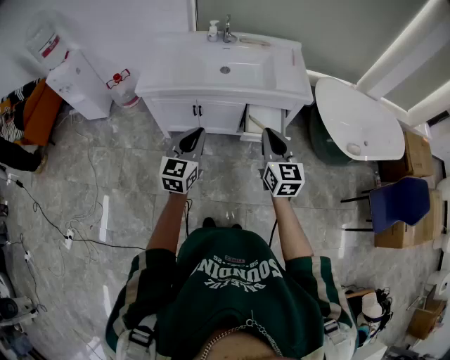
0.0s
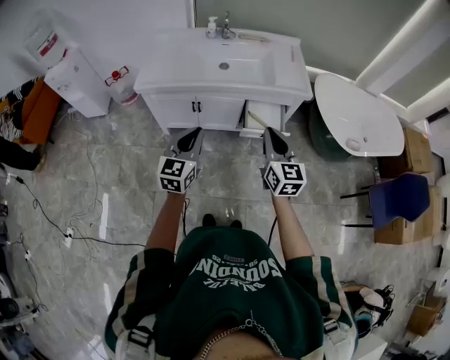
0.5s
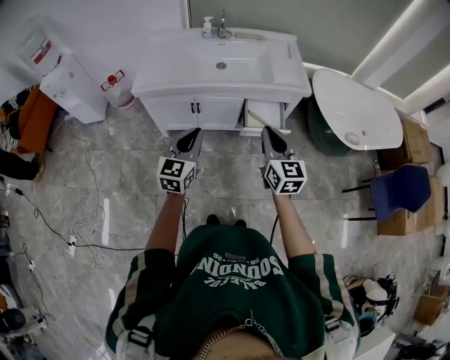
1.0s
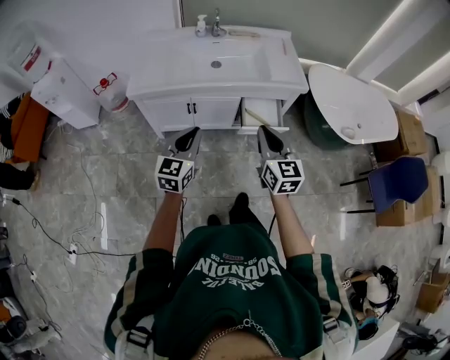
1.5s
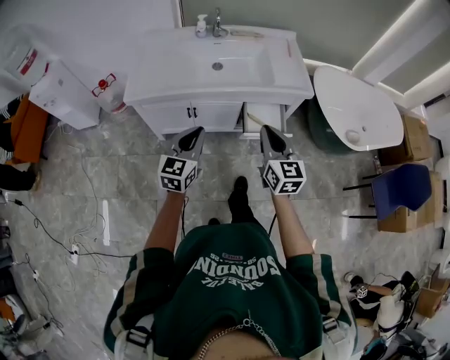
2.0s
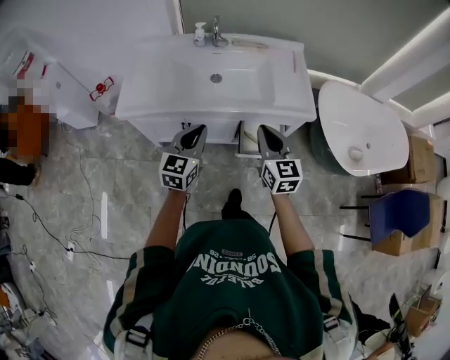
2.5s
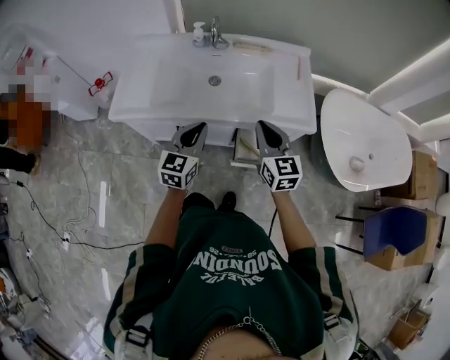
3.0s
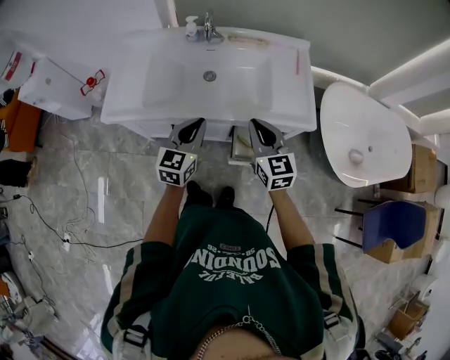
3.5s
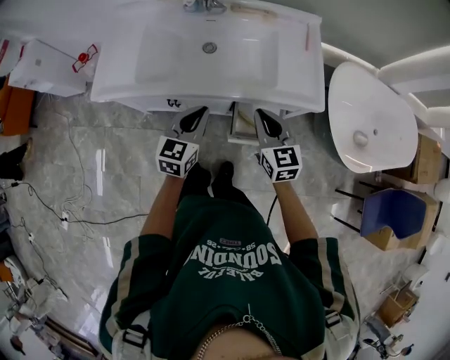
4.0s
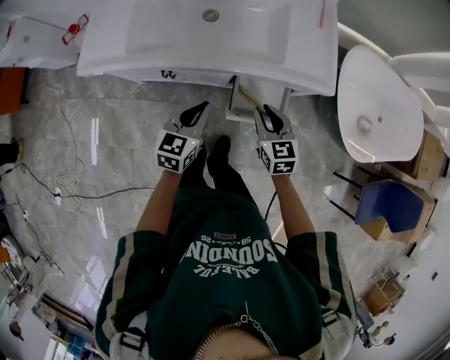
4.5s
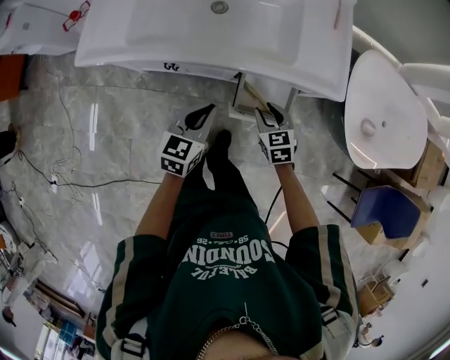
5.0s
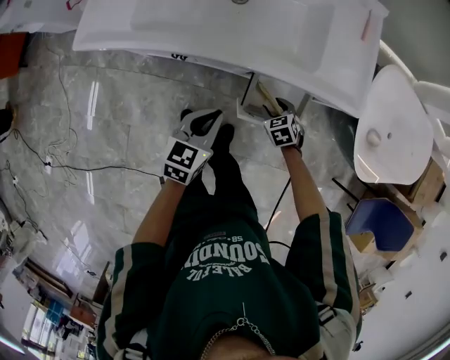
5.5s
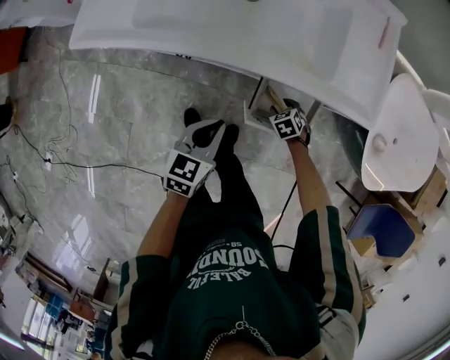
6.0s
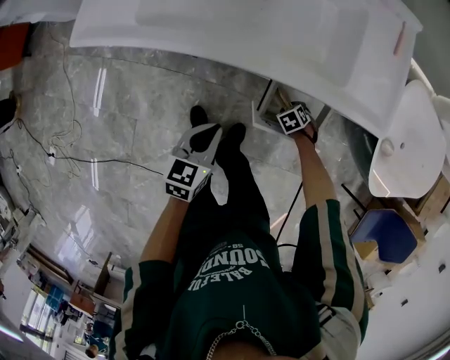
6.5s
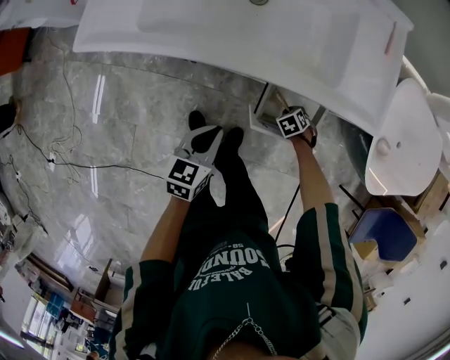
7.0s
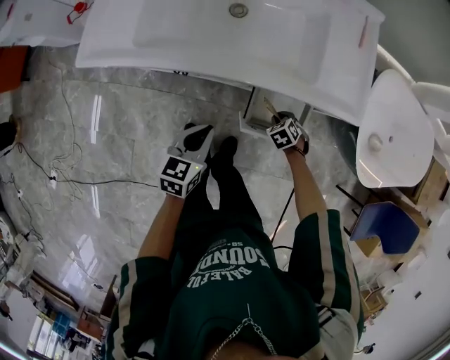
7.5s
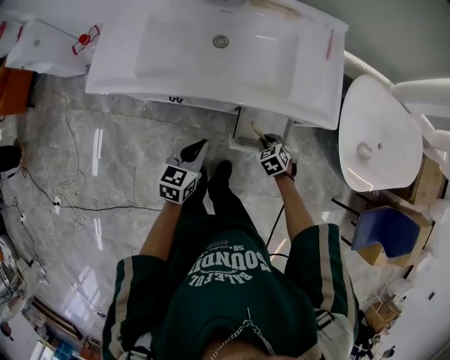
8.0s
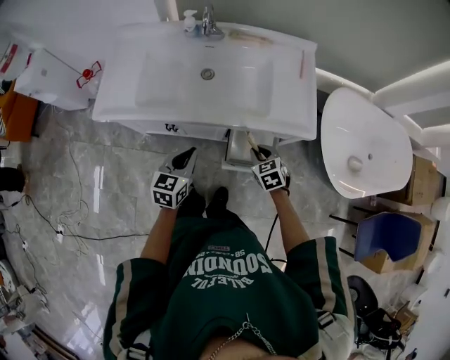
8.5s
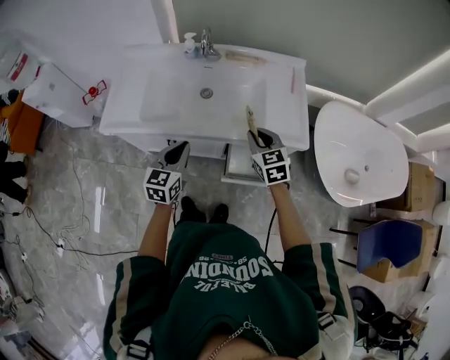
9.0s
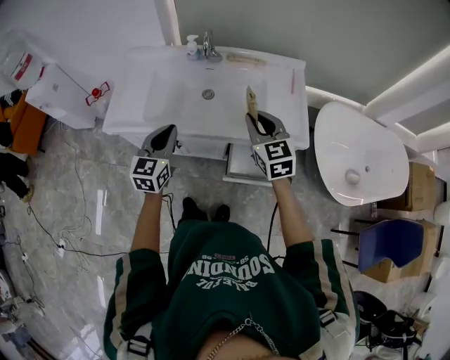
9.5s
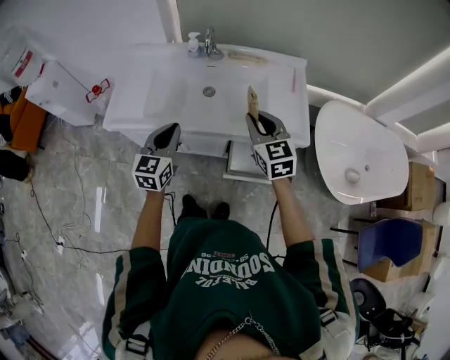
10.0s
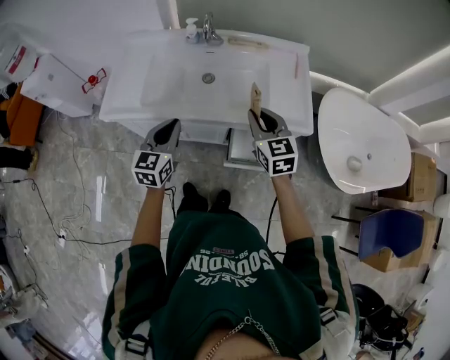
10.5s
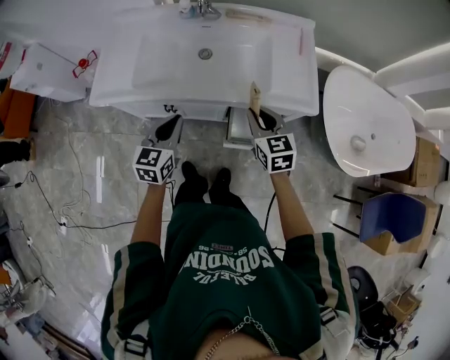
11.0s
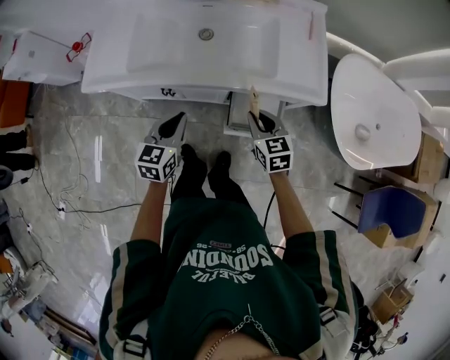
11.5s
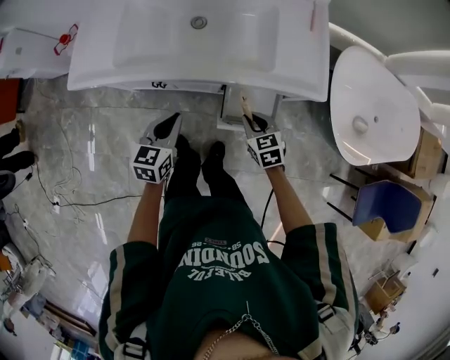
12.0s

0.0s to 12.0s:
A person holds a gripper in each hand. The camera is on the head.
0.0s to 2.0s: Both grippers travel together forward, roughly 5 cm.
2.0s to 4.0s: The left gripper goes some 25 cm forward and to the right. Meanwhile the right gripper heads forward and downward, covering some 25 cm.
4.0s to 6.0s: The left gripper goes some 15 cm downward, while the right gripper travels downward by approximately 40 cm, tips its fingers downward by approximately 60 degrees, and opens its fingers.
6.0s to 8.0s: The left gripper is displaced upward by roughly 5 cm; the right gripper moves upward, some 15 cm, and closes its fingers.
8.0s to 10.0s: The right gripper goes roughly 40 cm upward, and tips its fingers upward by about 50 degrees. The left gripper is displaced upward by roughly 20 cm, and changes its angle by about 30 degrees.
10.0s to 12.0s: The right gripper is displaced downward by approximately 30 cm, and changes its angle by roughly 30 degrees, while the left gripper moves downward, approximately 20 cm, and changes its angle by approximately 20 degrees.

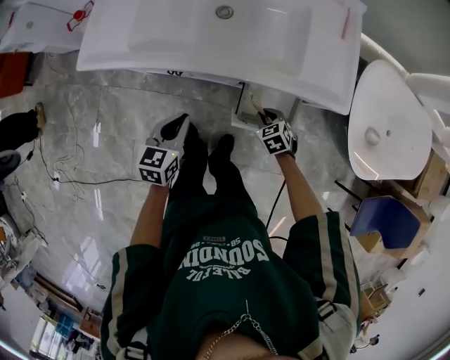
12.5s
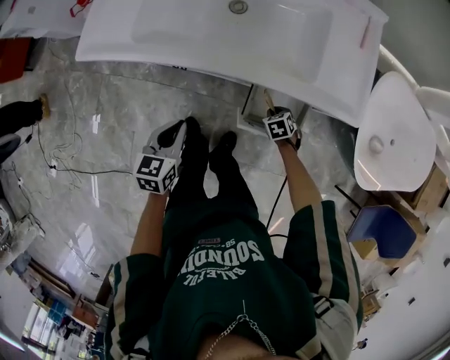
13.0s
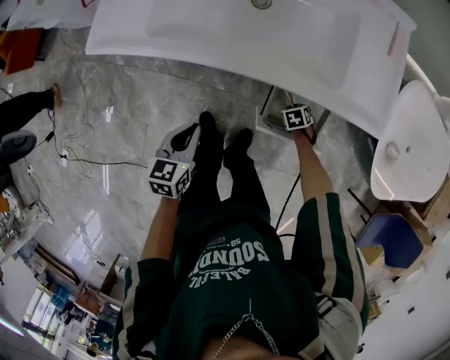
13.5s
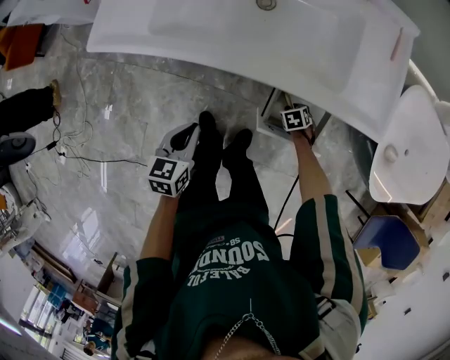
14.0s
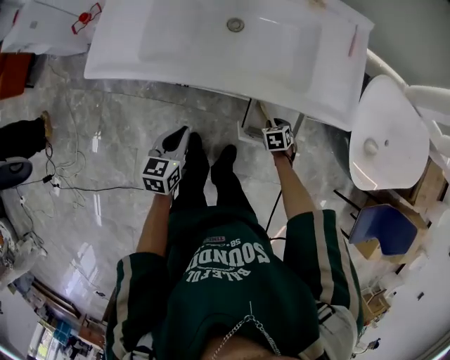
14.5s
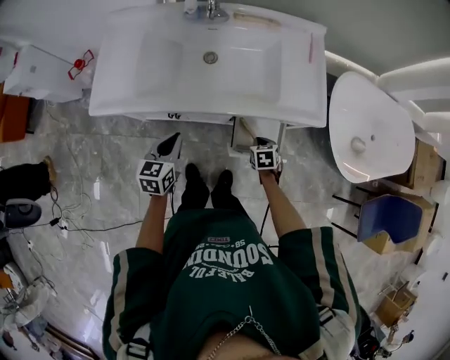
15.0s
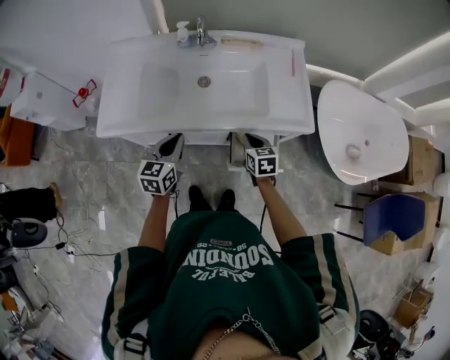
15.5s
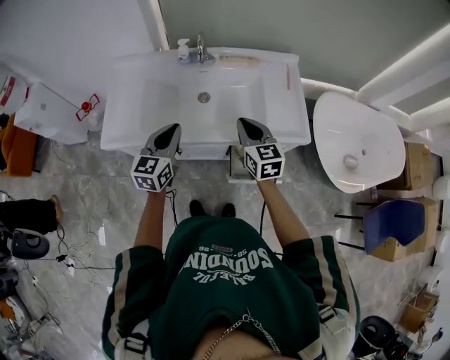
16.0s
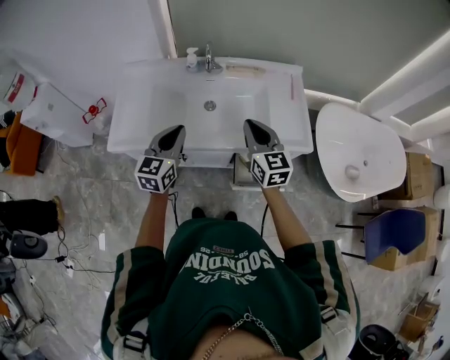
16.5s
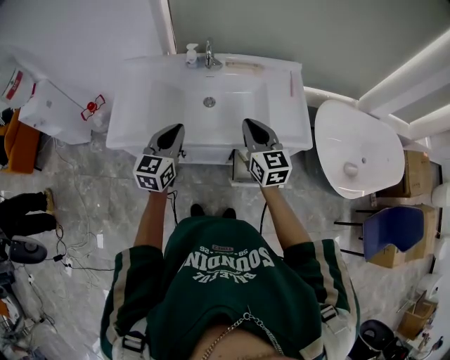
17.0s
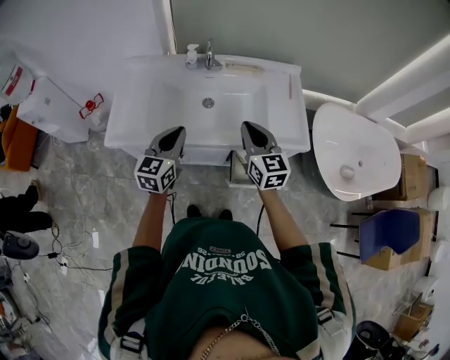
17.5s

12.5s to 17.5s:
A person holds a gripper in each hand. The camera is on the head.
12.5s to 15.0s: The right gripper travels downward and back again, some 15 cm each way, and swivels about 30 degrees. The left gripper shifts by about 10 cm.
15.0s to 17.5s: The left gripper moves upward, approximately 20 cm, and changes its angle by some 20 degrees. Meanwhile the right gripper heads upward, covering some 35 cm, and tilts its fingers about 50 degrees upward.

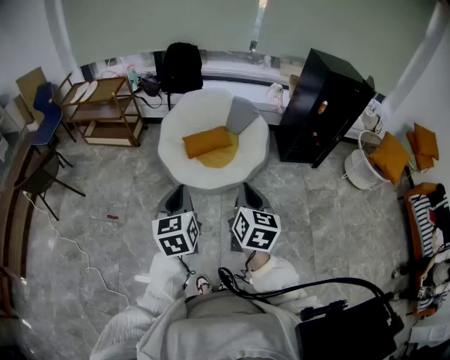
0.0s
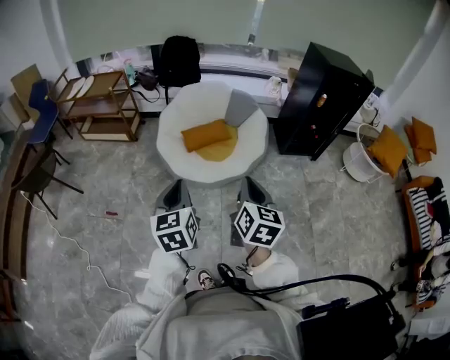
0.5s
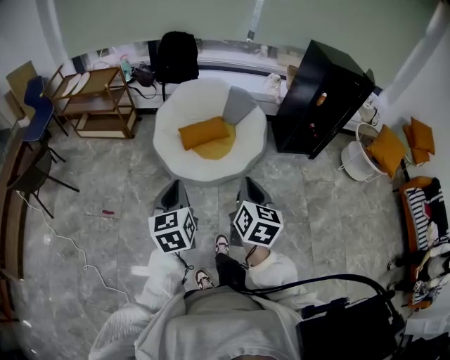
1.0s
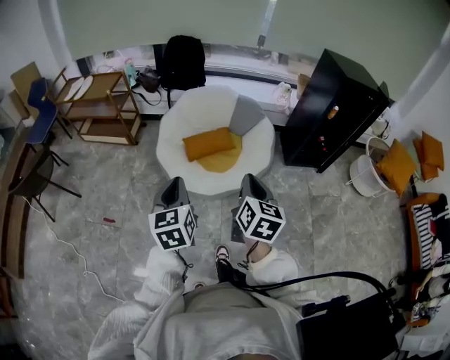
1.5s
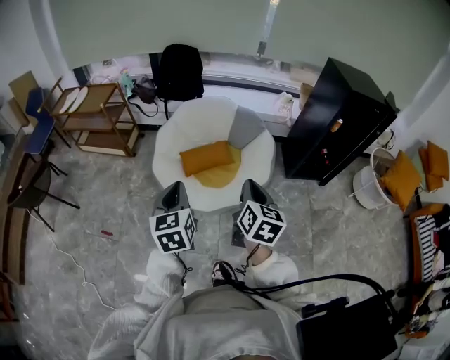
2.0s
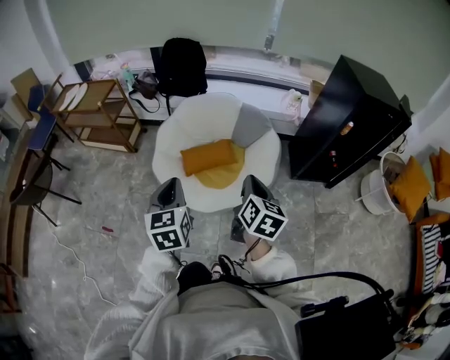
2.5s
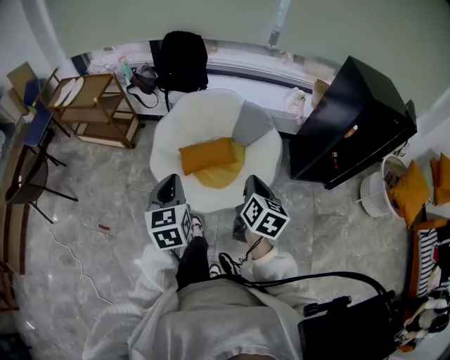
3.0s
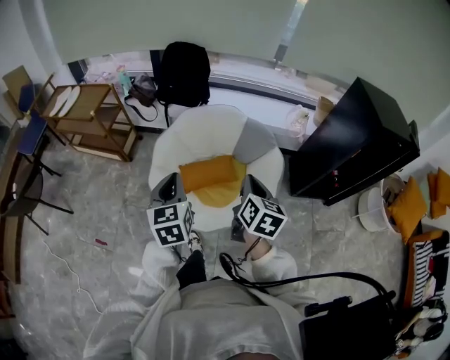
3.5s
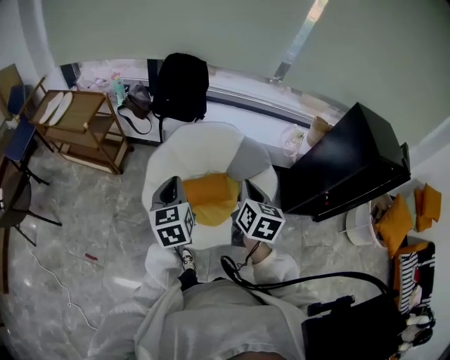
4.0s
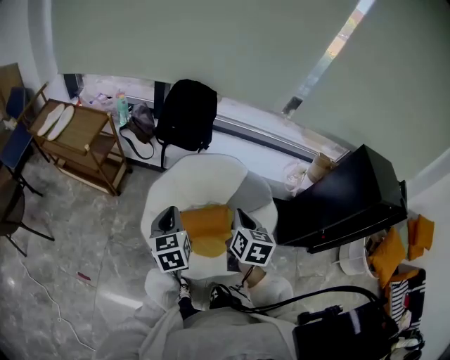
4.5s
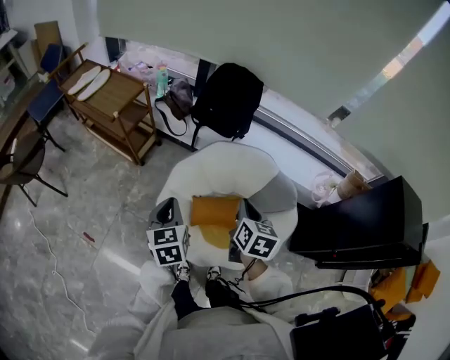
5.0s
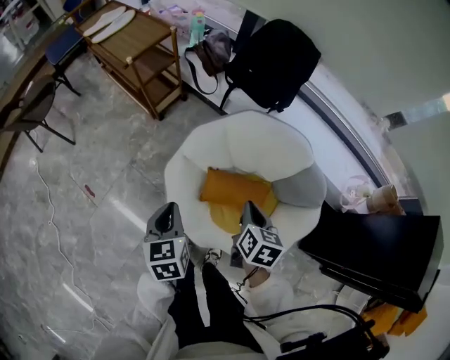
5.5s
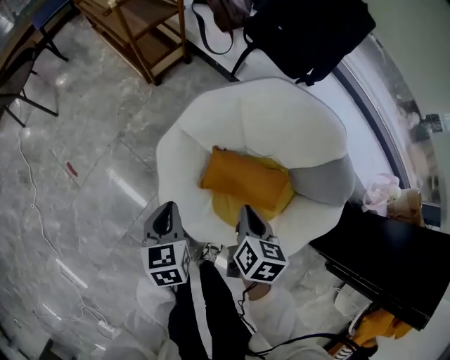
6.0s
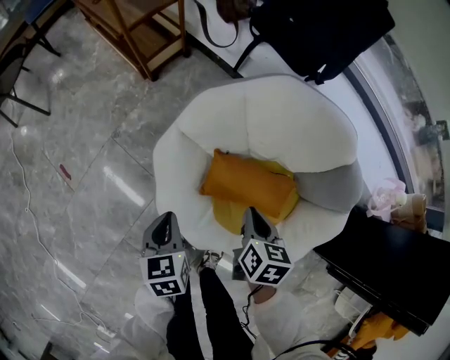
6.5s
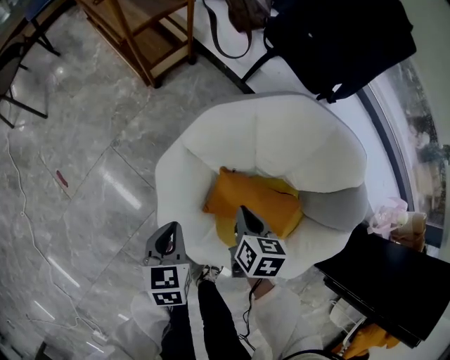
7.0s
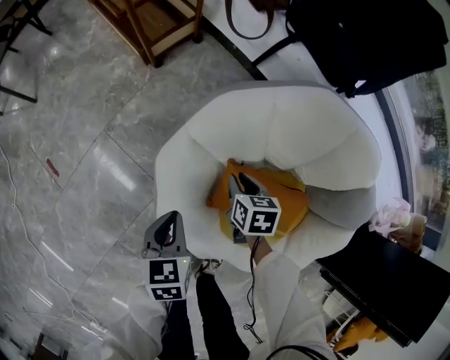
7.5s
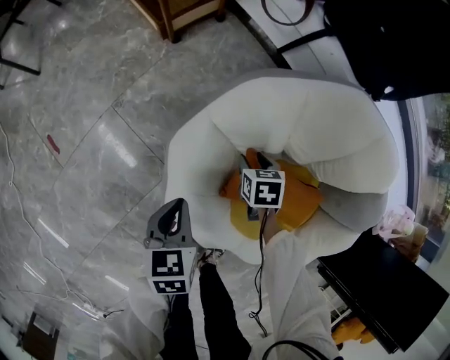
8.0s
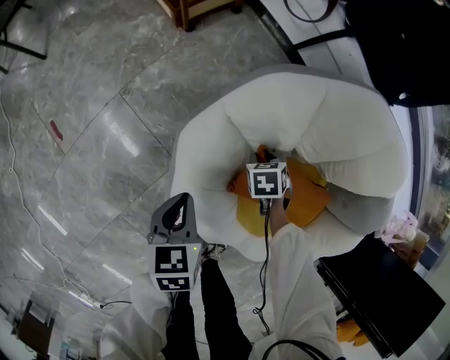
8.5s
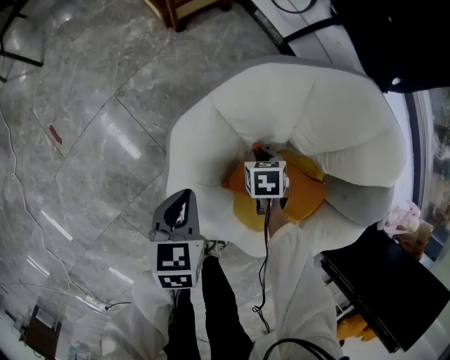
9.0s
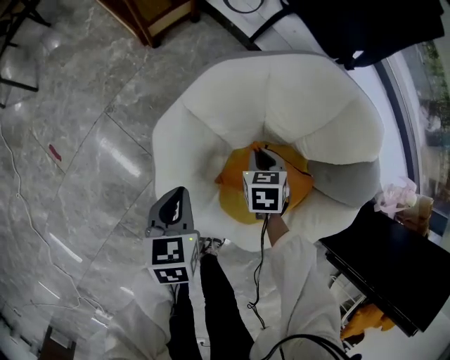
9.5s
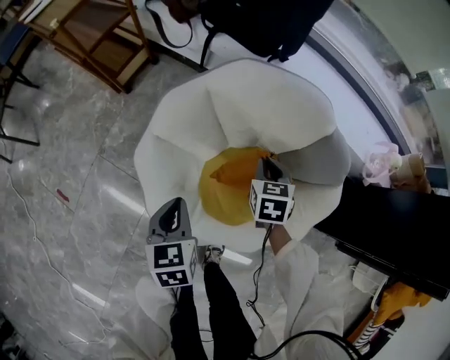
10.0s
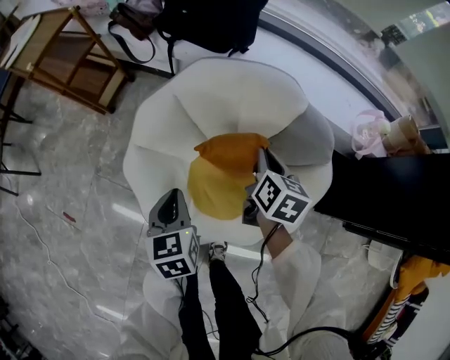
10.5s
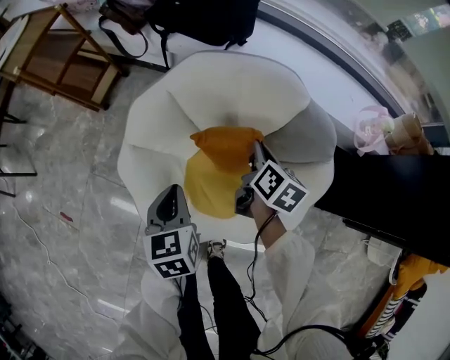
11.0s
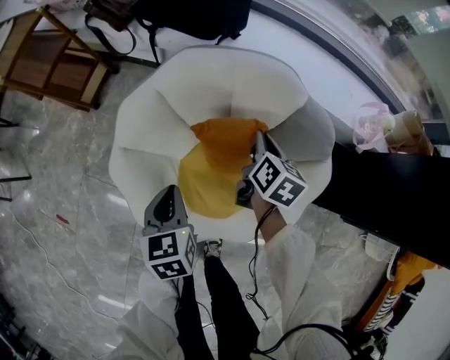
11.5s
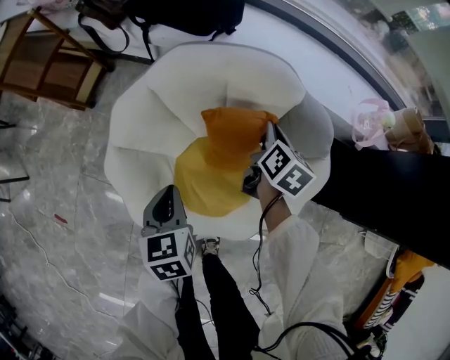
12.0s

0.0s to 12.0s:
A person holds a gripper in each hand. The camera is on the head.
0.0s to 2.0s: The two grippers go some 20 cm forward.
2.0s to 4.0s: The grippers both shift forward by some 30 cm.
4.0s to 6.0s: The two grippers go approximately 35 cm downward. The right gripper rotates roughly 40 degrees. Meanwhile the left gripper turns by approximately 40 degrees.
6.0s to 8.0s: The left gripper shifts about 15 cm downward. Meanwhile the right gripper is displaced downward and forward by about 35 cm, swivels approximately 40 degrees, and opens.
8.0s to 10.0s: The right gripper goes approximately 20 cm upward, changes its angle by some 30 degrees, and closes its fingers; the left gripper goes roughly 15 cm upward.
10.0s to 12.0s: Both grippers travel together to the right and forward, approximately 15 cm. The right gripper rolls clockwise, seen from behind, by roughly 40 degrees.
